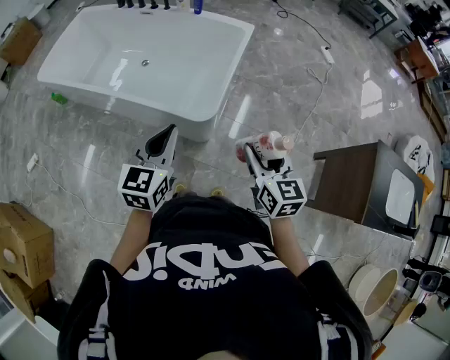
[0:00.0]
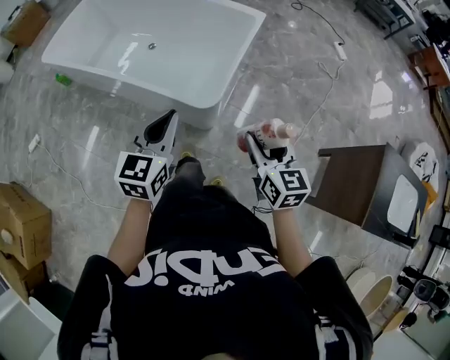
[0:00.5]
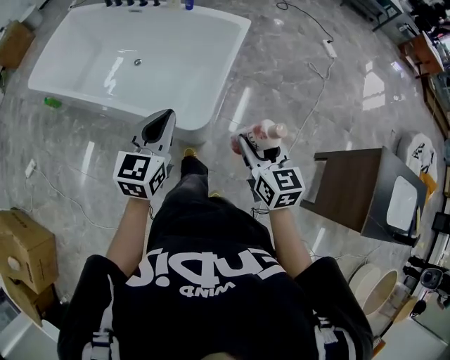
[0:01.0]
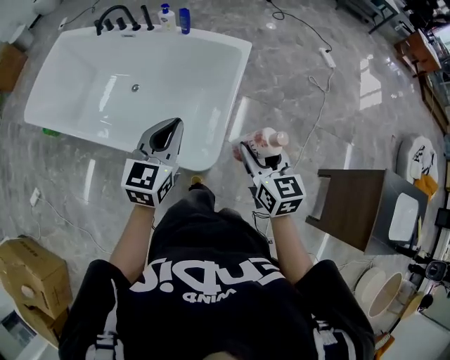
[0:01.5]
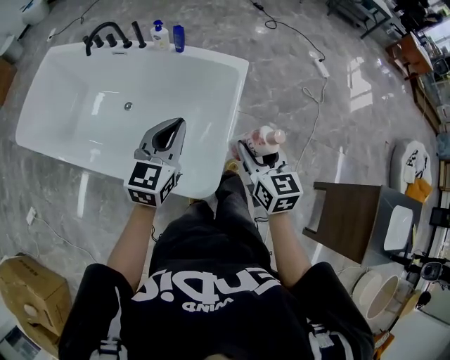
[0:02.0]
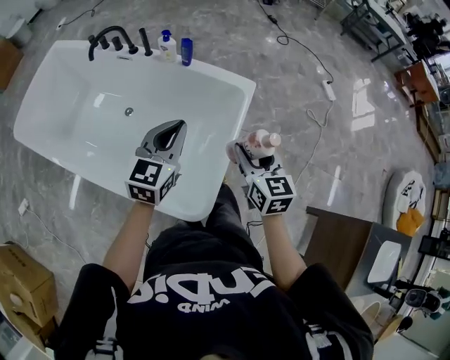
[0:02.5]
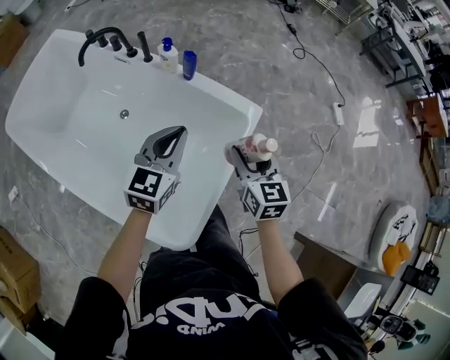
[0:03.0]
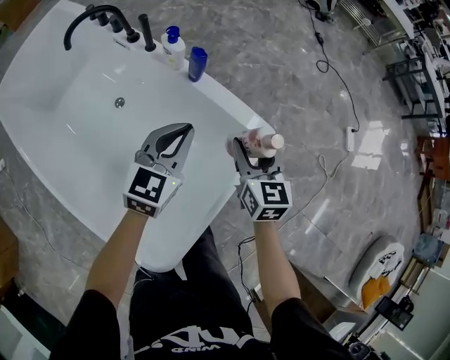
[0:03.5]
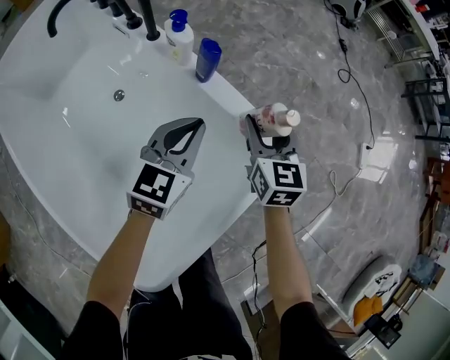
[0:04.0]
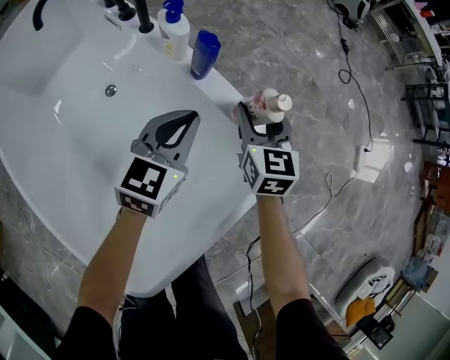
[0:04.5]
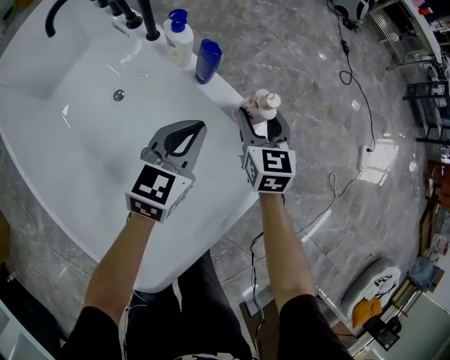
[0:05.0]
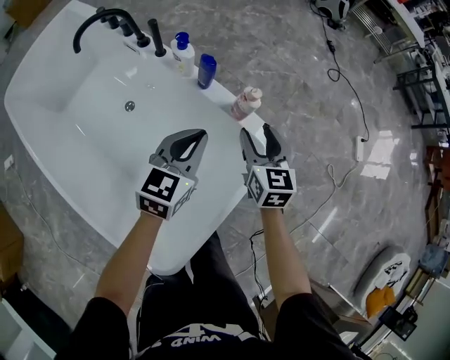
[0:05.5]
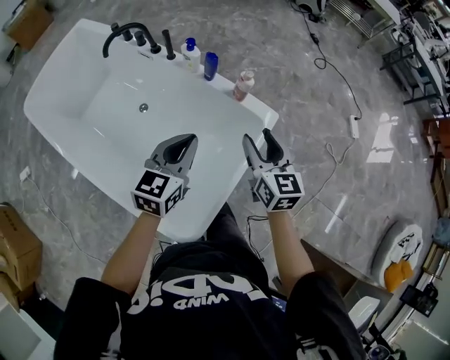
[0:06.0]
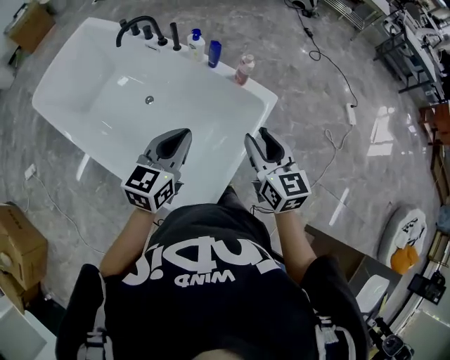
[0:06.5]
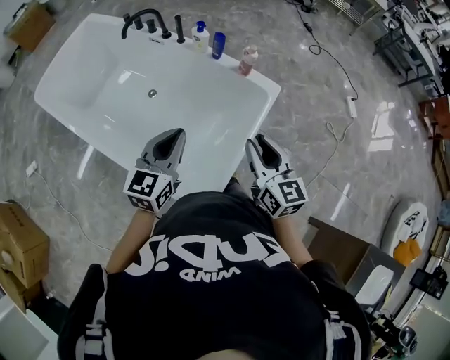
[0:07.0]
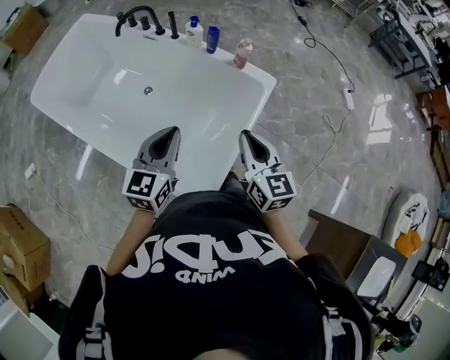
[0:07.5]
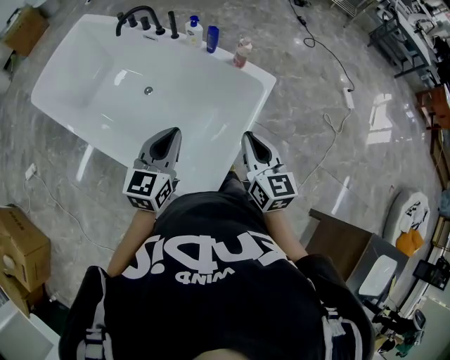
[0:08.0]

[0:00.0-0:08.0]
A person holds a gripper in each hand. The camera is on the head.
0:00.0 to 0:02.0: Both grippers move forward, some 35 cm.
0:02.0 to 0:04.0: The grippers both shift forward and downward by approximately 50 cm. The right gripper rotates roughly 20 degrees; the left gripper swivels some 20 degrees.
0:04.0 to 0:06.0: The right gripper goes approximately 30 cm backward and upward. Meanwhile the left gripper travels upward and backward by roughly 25 cm.
0:06.0 to 0:08.0: The left gripper goes roughly 20 cm backward and to the left; the right gripper goes about 20 cm backward, and closes its fingers.

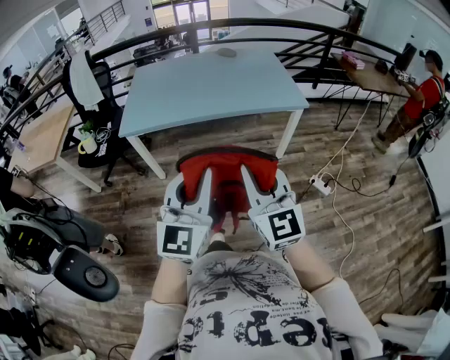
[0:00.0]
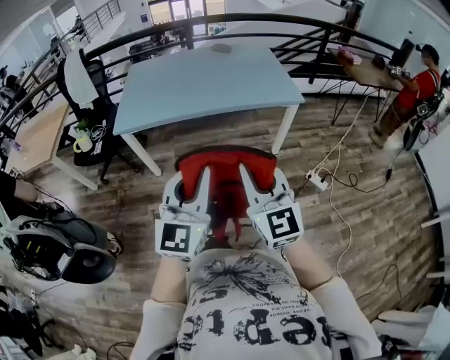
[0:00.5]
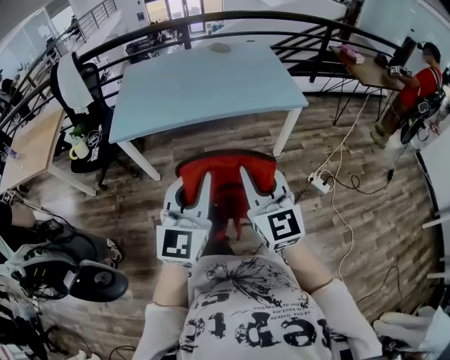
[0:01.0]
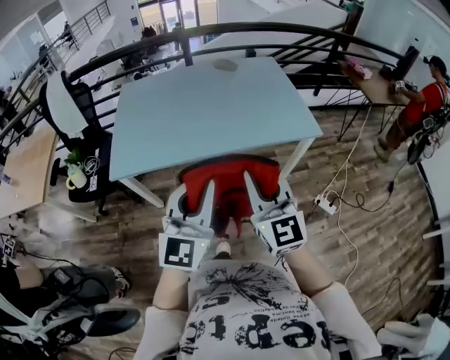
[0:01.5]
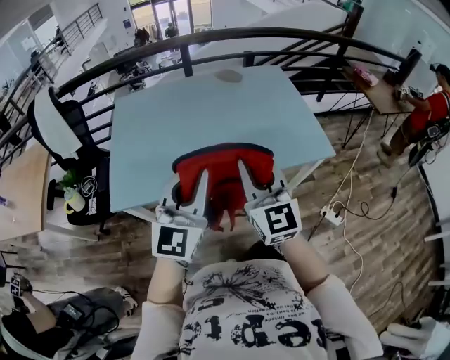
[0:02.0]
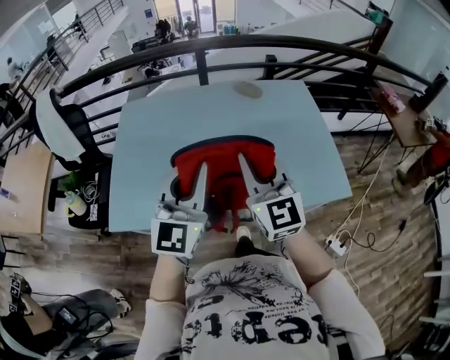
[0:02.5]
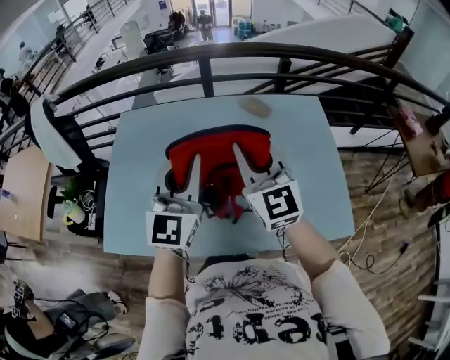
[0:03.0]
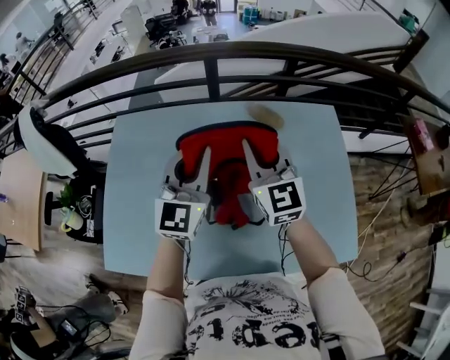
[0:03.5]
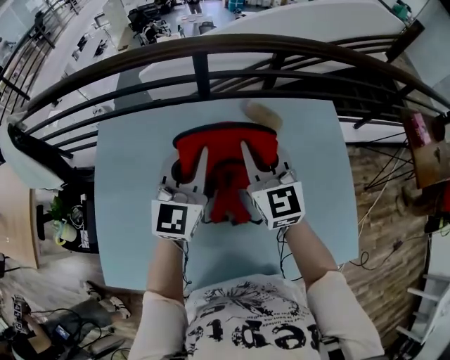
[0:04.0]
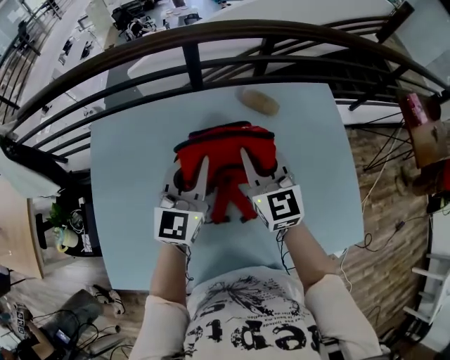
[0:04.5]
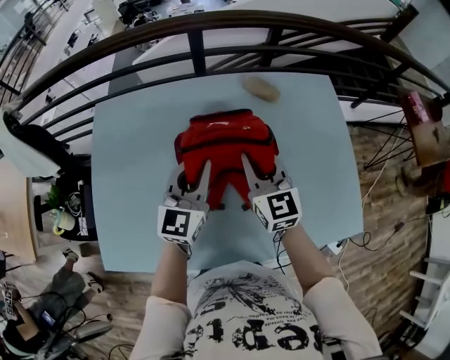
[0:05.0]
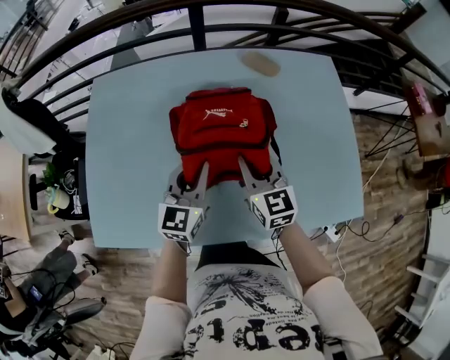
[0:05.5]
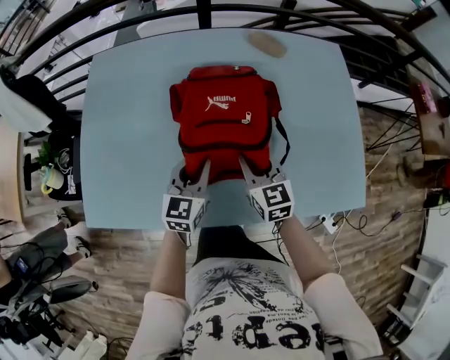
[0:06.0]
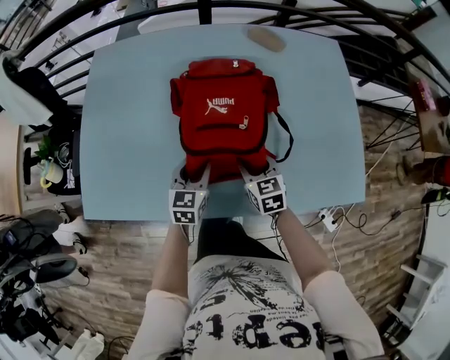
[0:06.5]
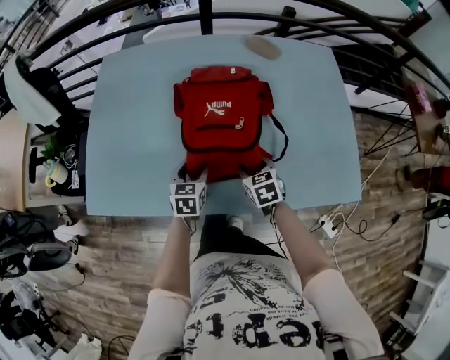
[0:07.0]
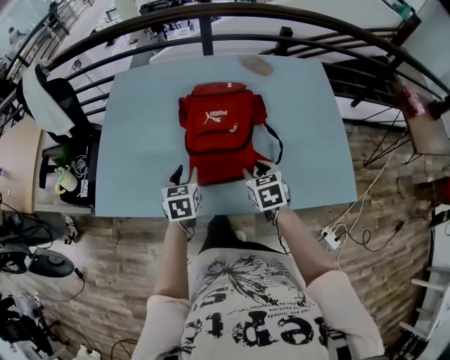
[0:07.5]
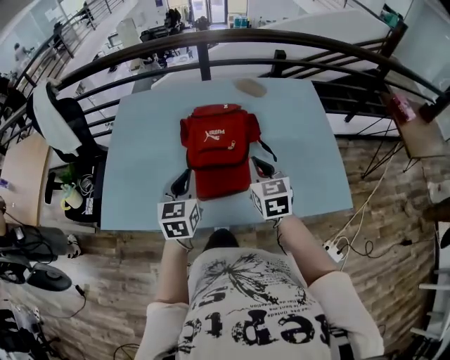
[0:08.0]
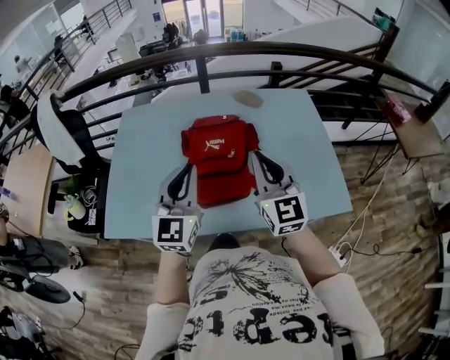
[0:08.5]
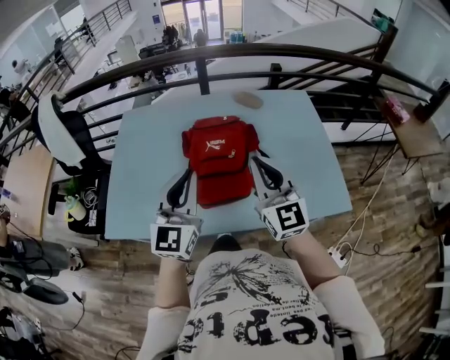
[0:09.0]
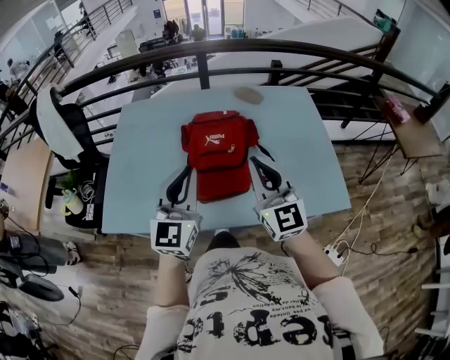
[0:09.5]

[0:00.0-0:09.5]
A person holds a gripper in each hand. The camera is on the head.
0:00.0 to 0:02.0: The two grippers travel together, forward, approximately 50 cm.
0:02.0 to 0:04.0: Both grippers are carried forward, roughly 60 cm.
0:04.0 to 0:05.5: The two grippers go roughly 25 cm backward and downward.
0:05.5 to 0:07.5: The left gripper goes approximately 15 cm backward, downward and to the left, tilts its fingers some 30 degrees downward, and opens; the right gripper moves backward and downward, approximately 15 cm, and rotates approximately 30 degrees.
0:07.5 to 0:09.5: Both grippers travel together upward, approximately 25 cm. The left gripper points its fingers about 50 degrees further upward, and closes up. Meanwhile the right gripper angles its fingers upward, by about 50 degrees, and closes up.

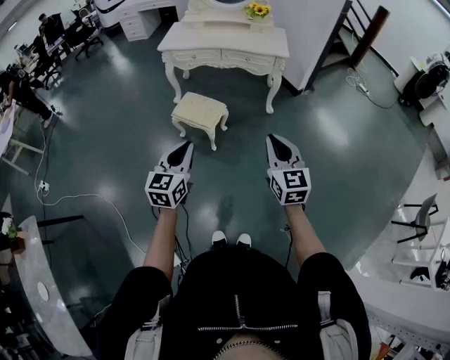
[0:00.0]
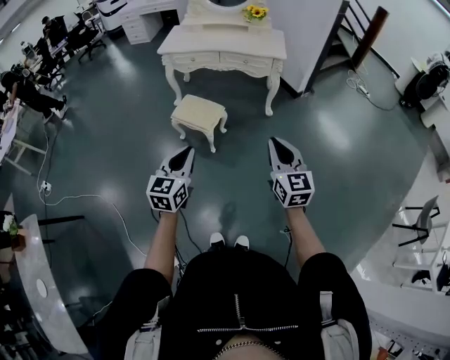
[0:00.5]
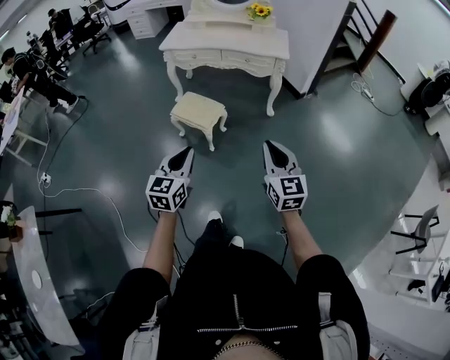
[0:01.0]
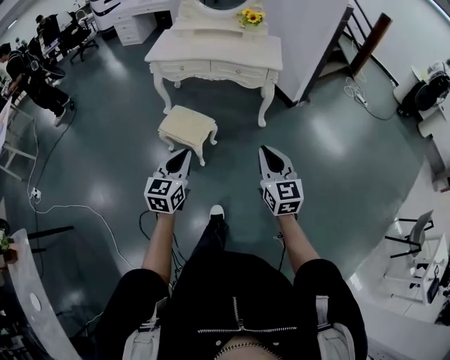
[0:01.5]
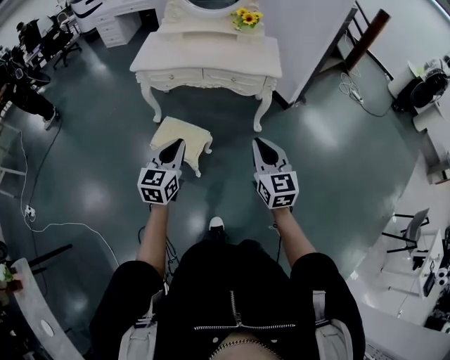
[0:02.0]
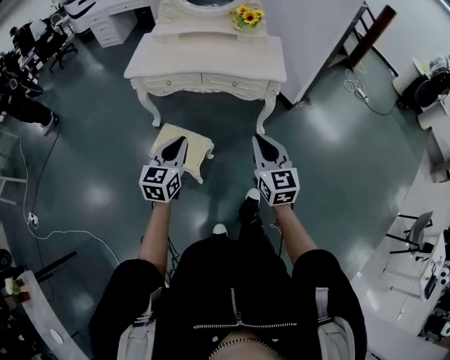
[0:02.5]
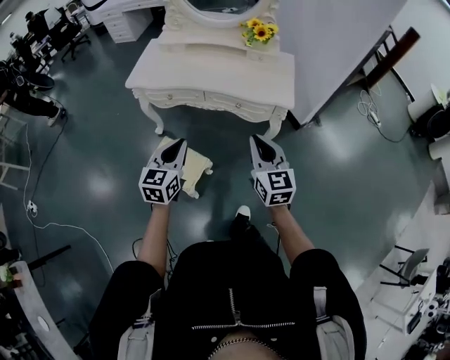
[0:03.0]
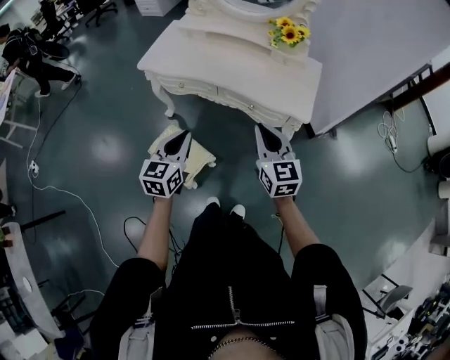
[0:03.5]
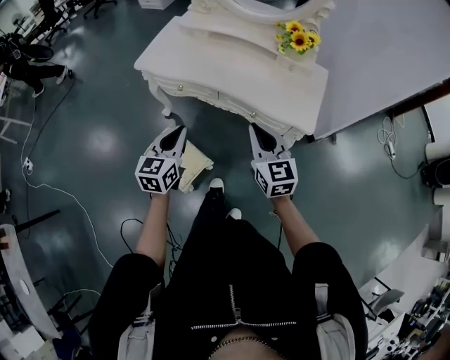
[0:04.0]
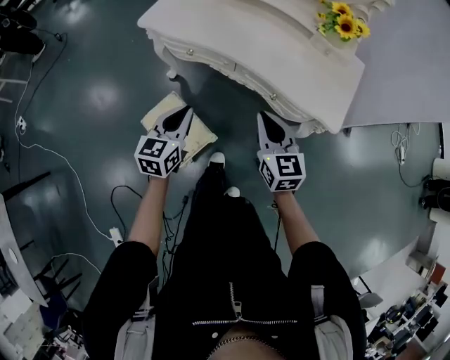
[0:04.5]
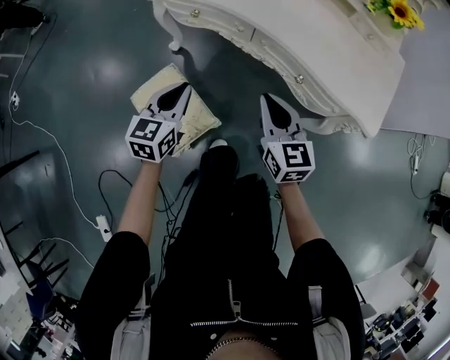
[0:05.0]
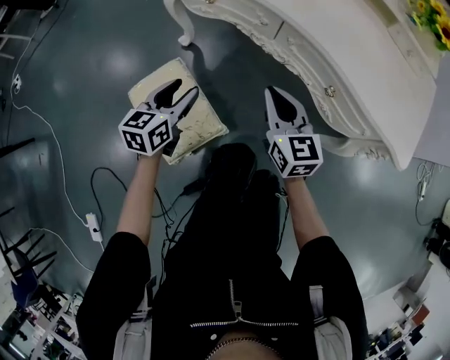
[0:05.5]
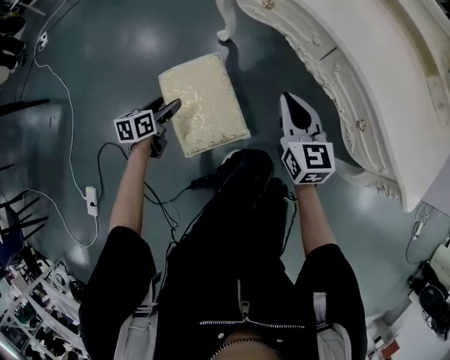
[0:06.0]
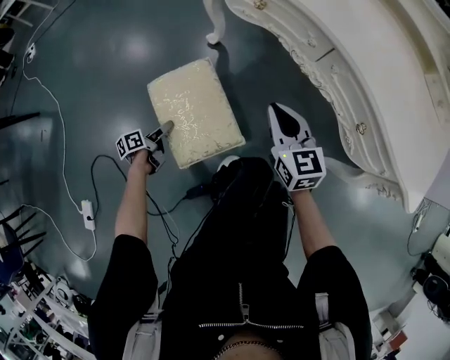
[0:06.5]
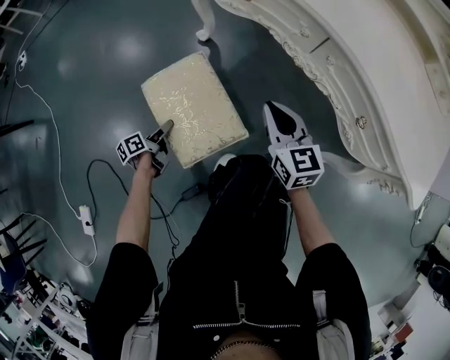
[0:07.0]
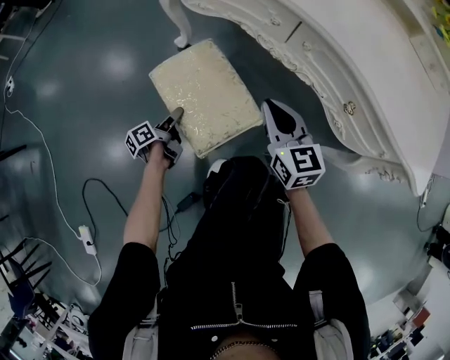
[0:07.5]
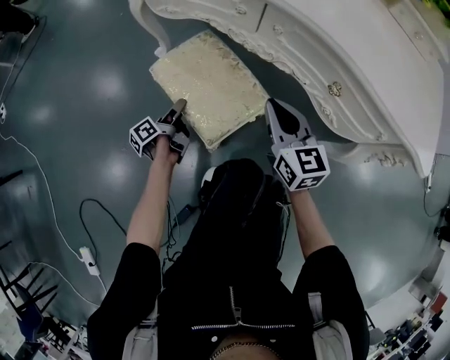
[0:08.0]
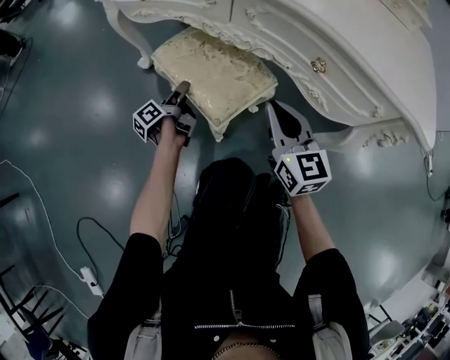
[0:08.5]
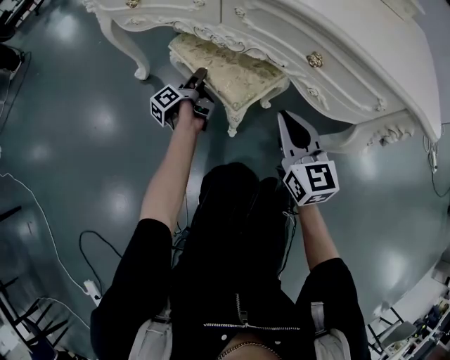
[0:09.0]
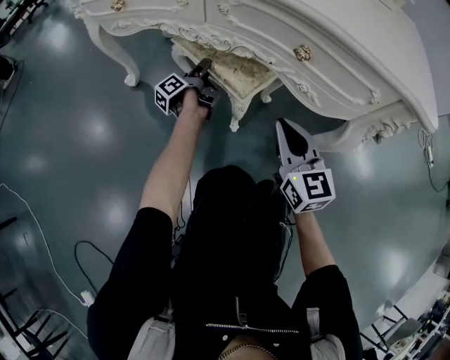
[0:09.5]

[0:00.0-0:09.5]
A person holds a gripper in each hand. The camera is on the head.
0:00.0 to 0:02.0: Both grippers travel together forward, some 30 cm.
0:02.0 to 0:04.0: Both grippers move forward, approximately 35 cm. The right gripper rotates some 20 degrees.
0:04.0 to 0:05.5: Both grippers move downward, roughly 35 cm. The left gripper opens its fingers.
0:05.5 to 0:07.5: The left gripper travels downward by approximately 25 cm, and twists approximately 60 degrees counterclockwise, seen from behind. Meanwhile the right gripper heads downward, covering some 10 cm.
0:07.5 to 0:09.5: The left gripper heads to the right and forward, covering roughly 35 cm, and swivels approximately 20 degrees. The right gripper heads to the right and downward, covering roughly 20 cm, and rotates roughly 20 degrees.
